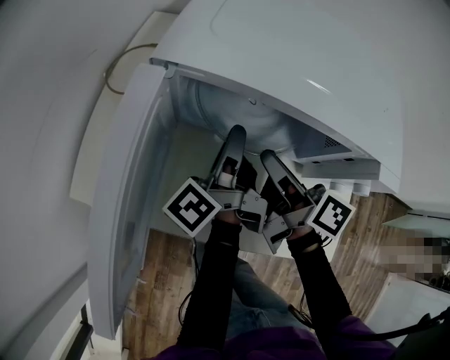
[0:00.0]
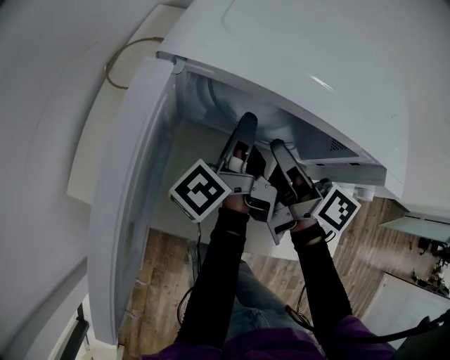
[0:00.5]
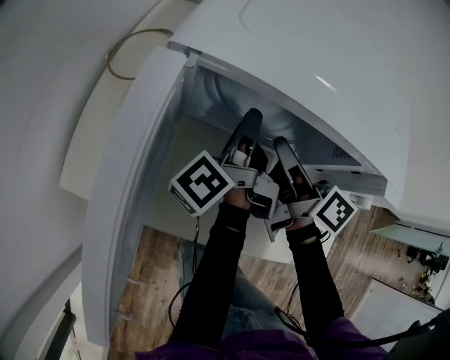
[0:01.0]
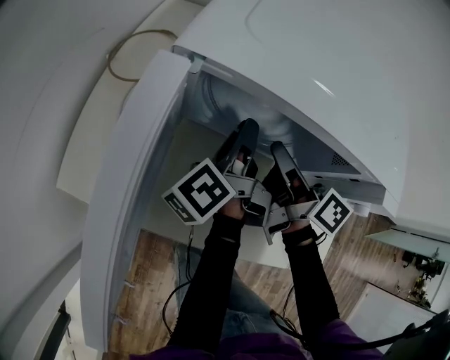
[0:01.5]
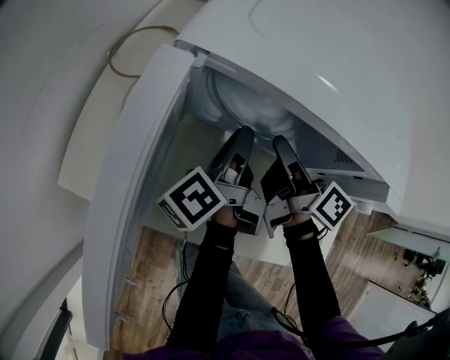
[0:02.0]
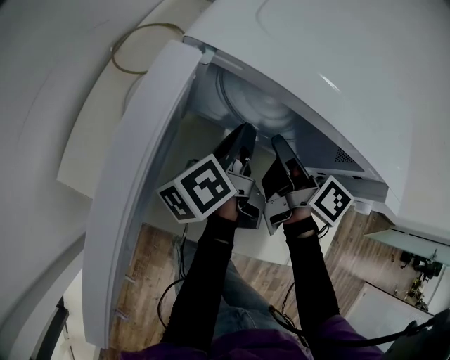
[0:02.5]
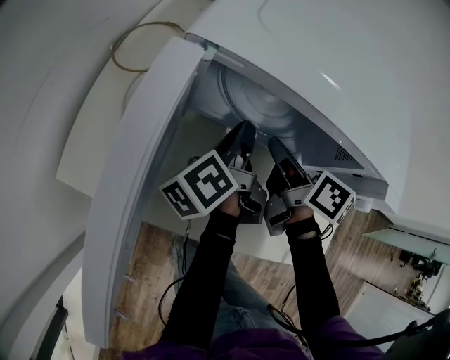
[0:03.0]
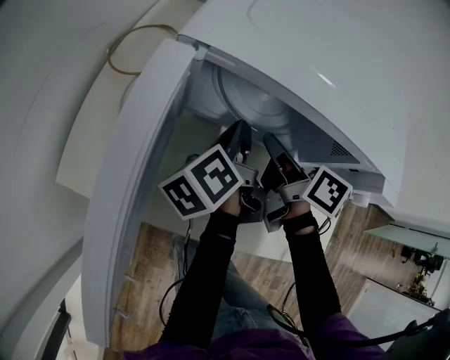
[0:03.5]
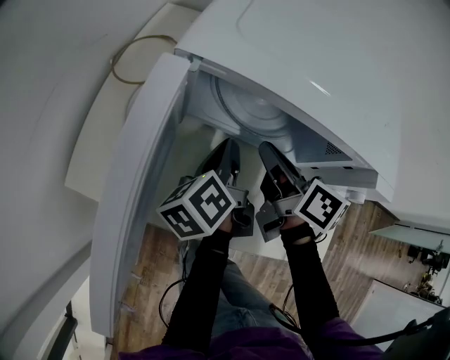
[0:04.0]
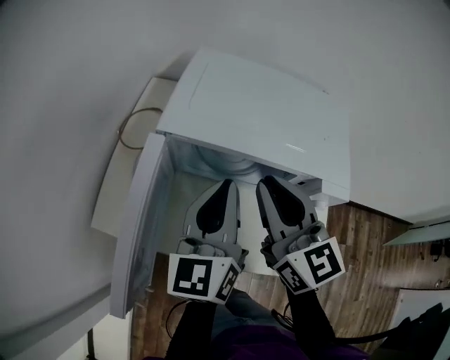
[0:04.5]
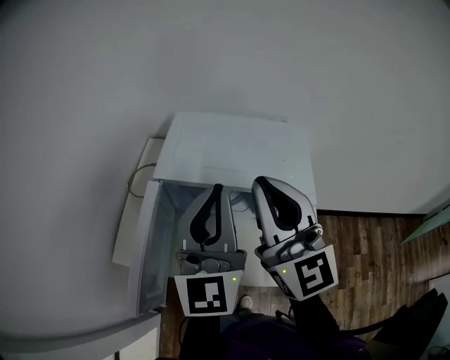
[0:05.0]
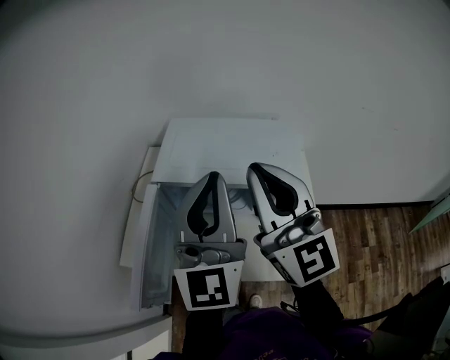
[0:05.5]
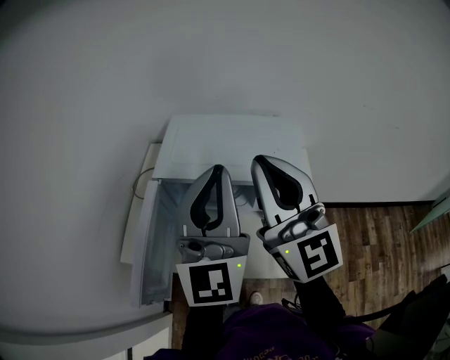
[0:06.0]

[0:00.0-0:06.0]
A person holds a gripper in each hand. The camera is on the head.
0:00.0 to 0:02.0: The right gripper moves roughly 5 cm.
0:02.0 to 0:04.0: The left gripper swivels about 30 degrees, and closes up.
0:04.0 to 0:06.0: The two grippers go about 40 cm upward. The left gripper twists some 70 degrees clockwise, seen from behind; the right gripper rolls counterclockwise, seen from behind, by approximately 60 degrees.

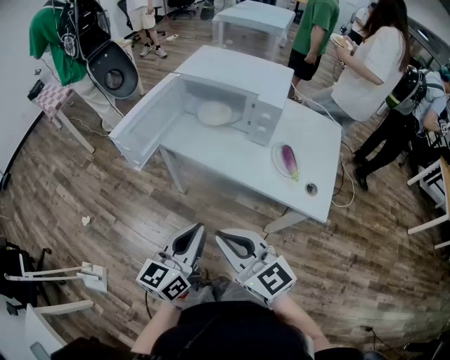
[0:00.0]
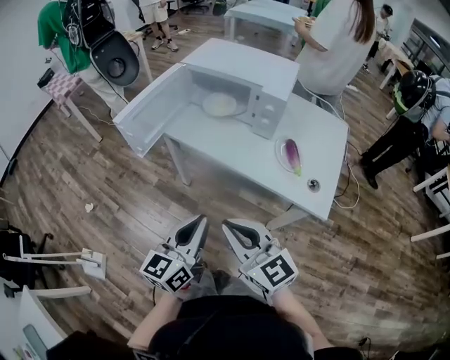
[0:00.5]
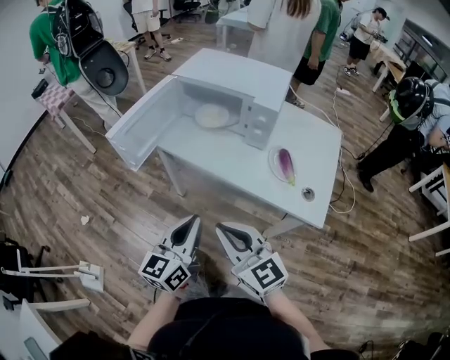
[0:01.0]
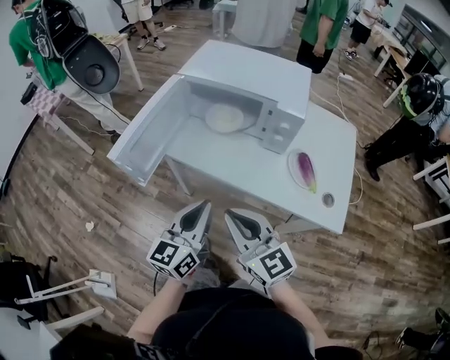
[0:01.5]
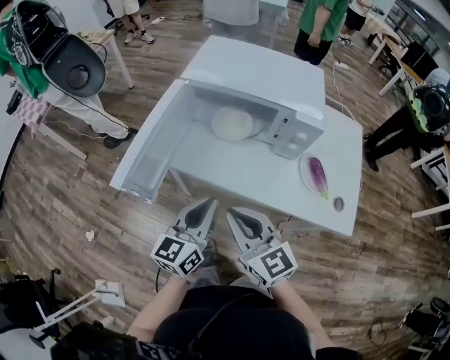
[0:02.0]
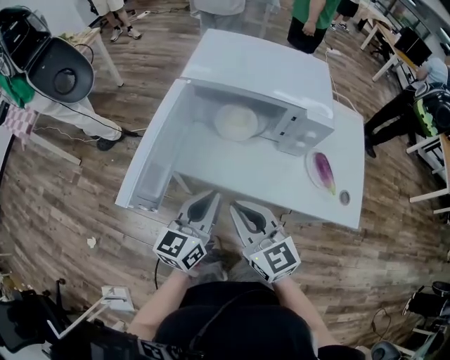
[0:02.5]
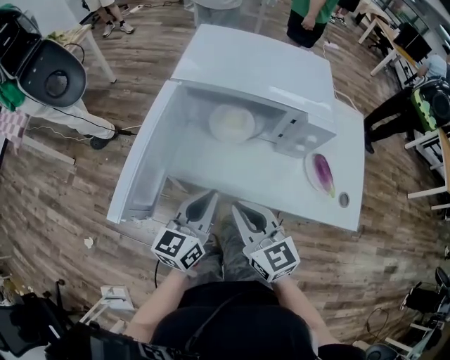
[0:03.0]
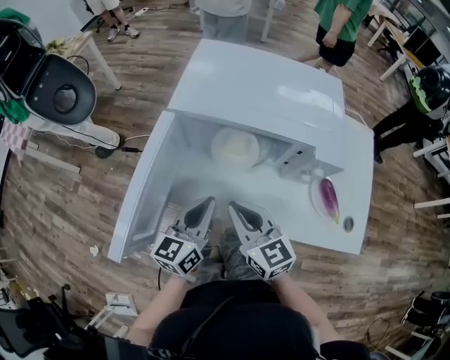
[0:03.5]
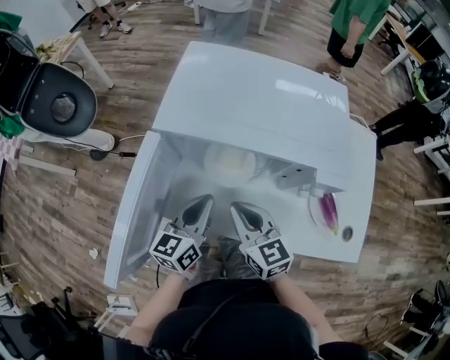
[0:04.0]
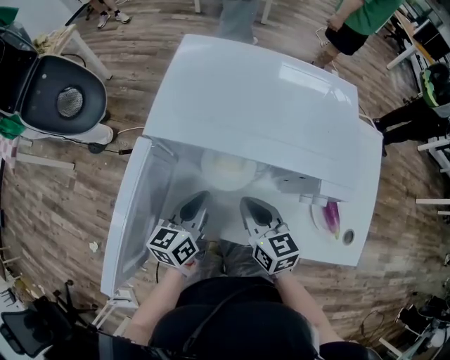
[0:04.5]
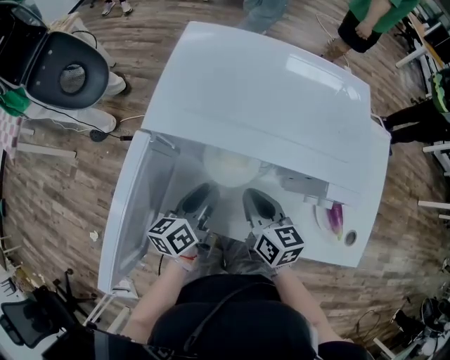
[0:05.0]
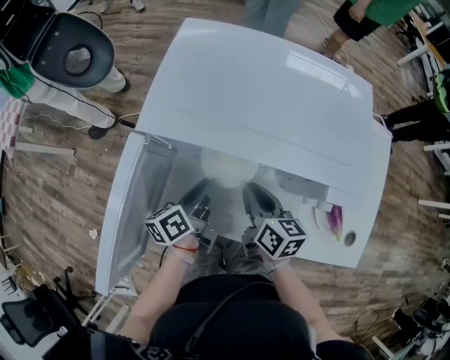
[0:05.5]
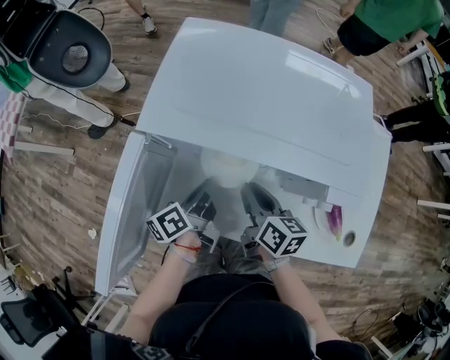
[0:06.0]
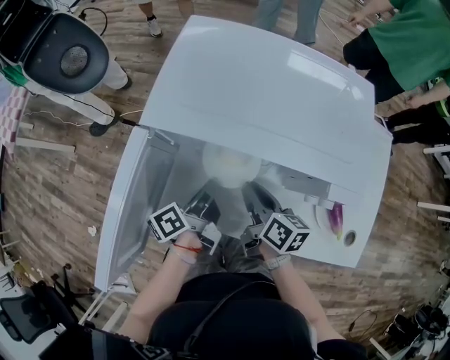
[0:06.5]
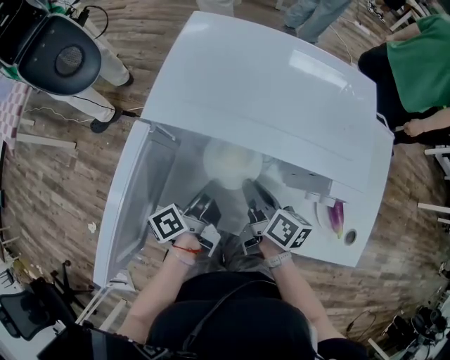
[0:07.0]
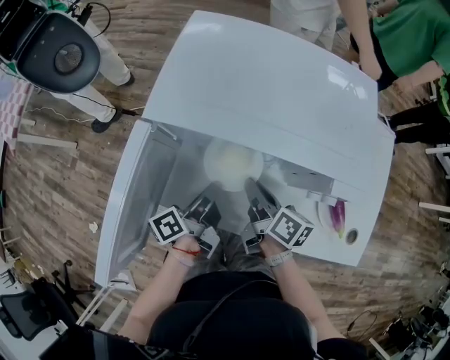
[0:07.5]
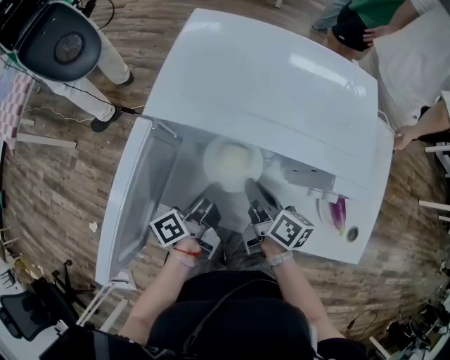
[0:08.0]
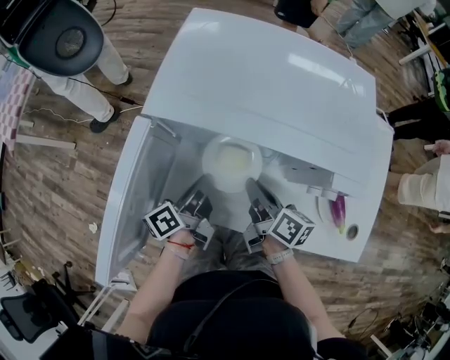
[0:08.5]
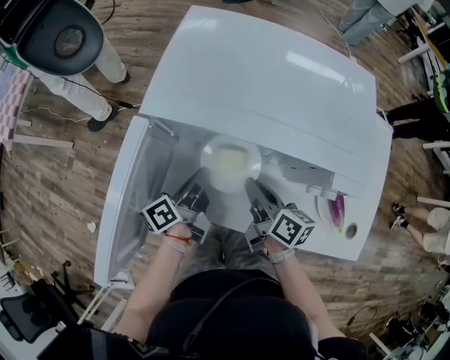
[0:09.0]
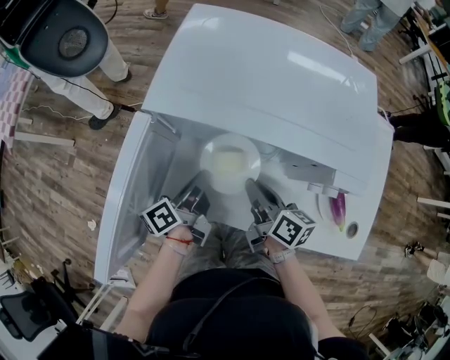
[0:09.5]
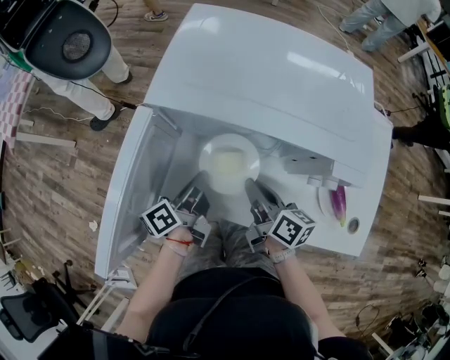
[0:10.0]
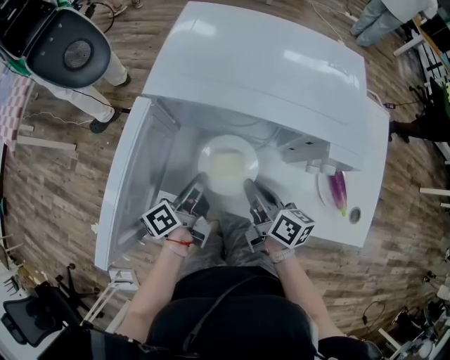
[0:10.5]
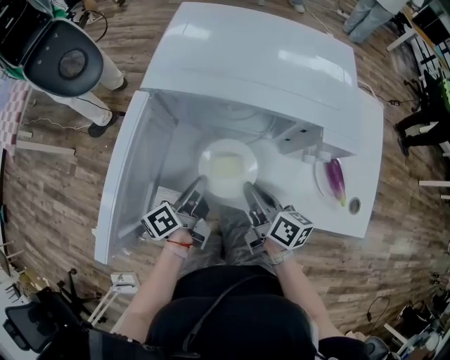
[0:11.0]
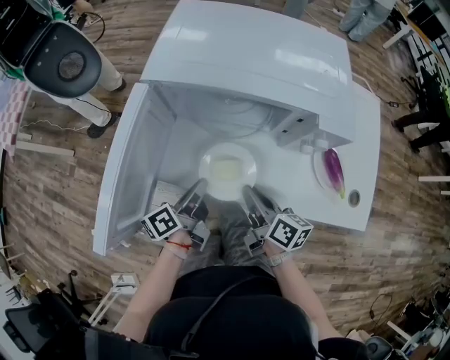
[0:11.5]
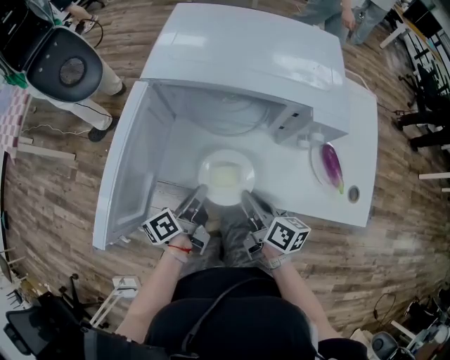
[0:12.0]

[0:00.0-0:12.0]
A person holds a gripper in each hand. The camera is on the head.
0:00.0 to 0:02.0: The two grippers go about 20 cm forward.
0:02.0 to 0:04.0: The right gripper heads forward and downward, covering about 20 cm. The left gripper goes about 20 cm forward.
0:04.0 to 0:06.0: The left gripper travels downward and forward by approximately 10 cm, rolls counterclockwise, seen from behind, by roughly 40 degrees, and opens, then closes again. Meanwhile the right gripper travels downward, forward and to the right by some 10 cm, and turns by roughly 40 degrees.
0:06.0 to 0:10.0: The grippers make only small movements.
0:10.0 to 0:12.0: Both grippers move backward, roughly 10 cm.

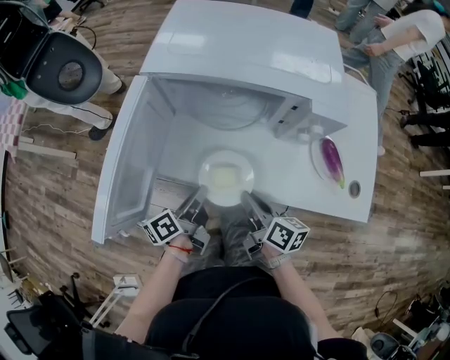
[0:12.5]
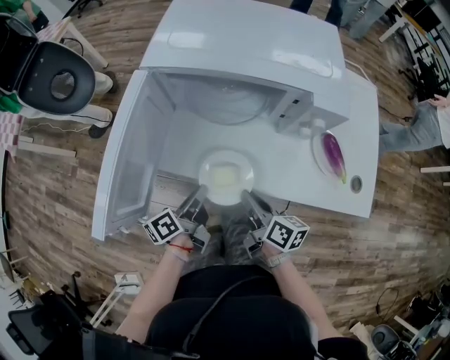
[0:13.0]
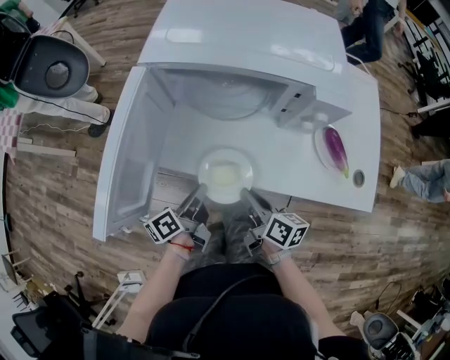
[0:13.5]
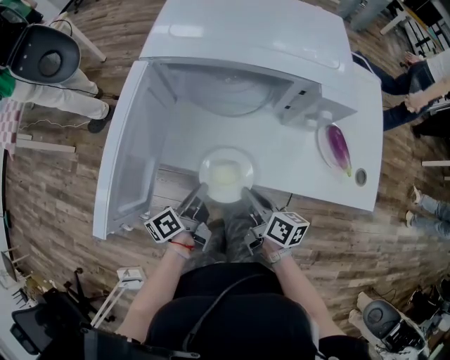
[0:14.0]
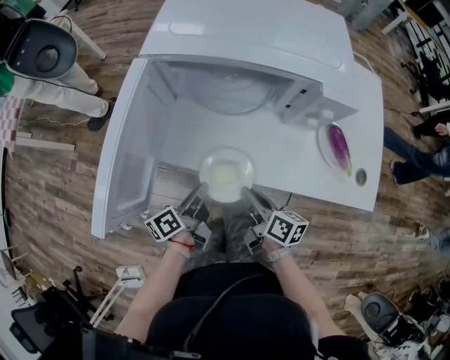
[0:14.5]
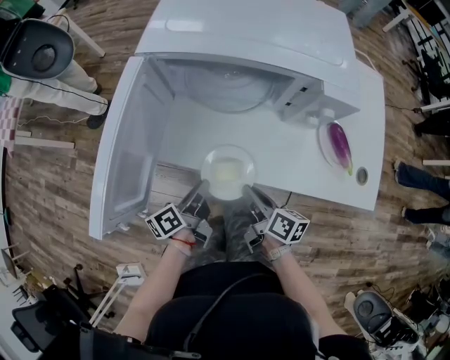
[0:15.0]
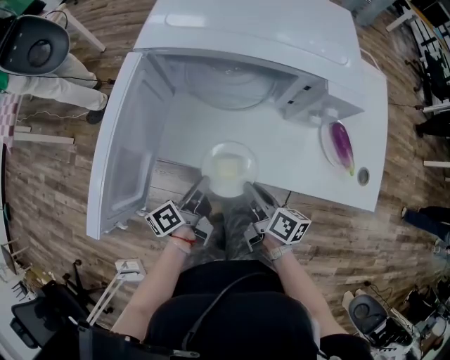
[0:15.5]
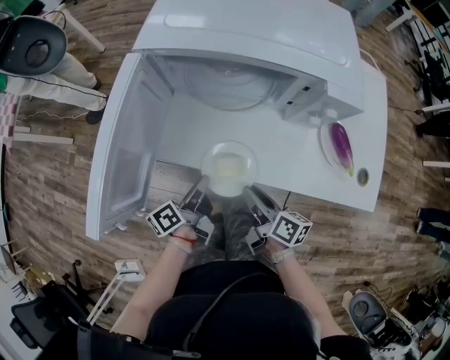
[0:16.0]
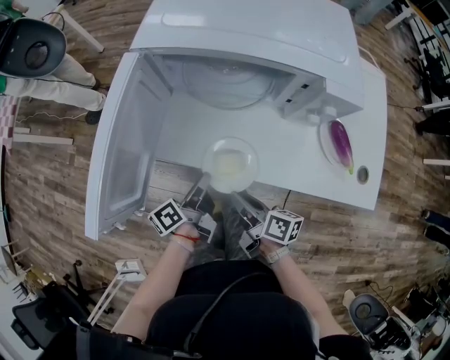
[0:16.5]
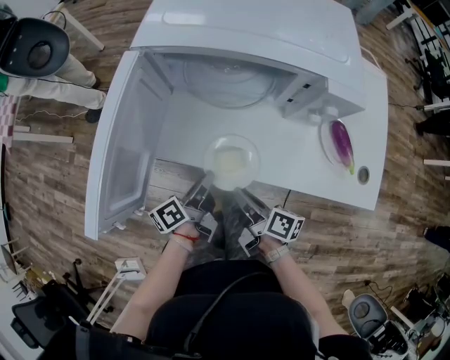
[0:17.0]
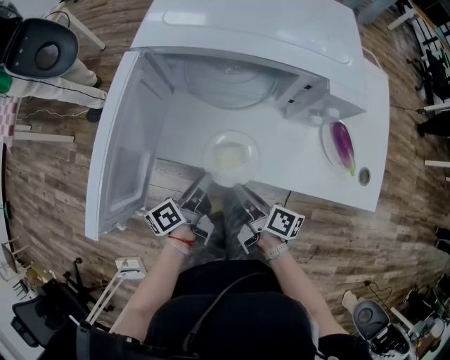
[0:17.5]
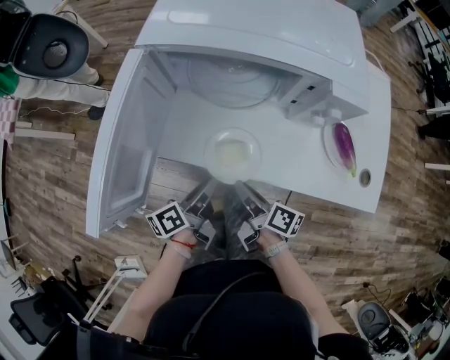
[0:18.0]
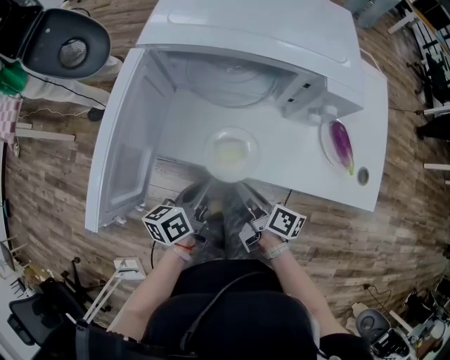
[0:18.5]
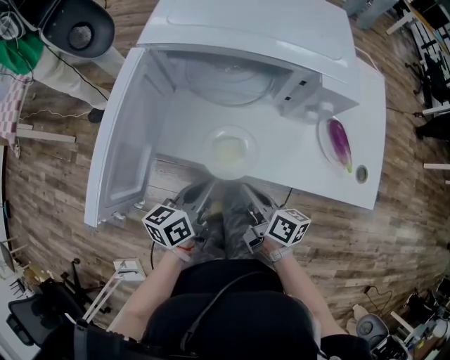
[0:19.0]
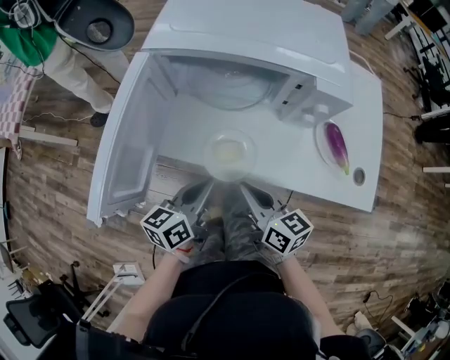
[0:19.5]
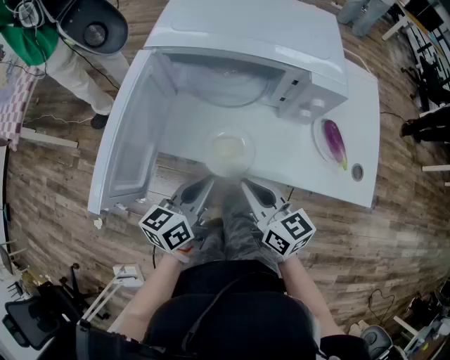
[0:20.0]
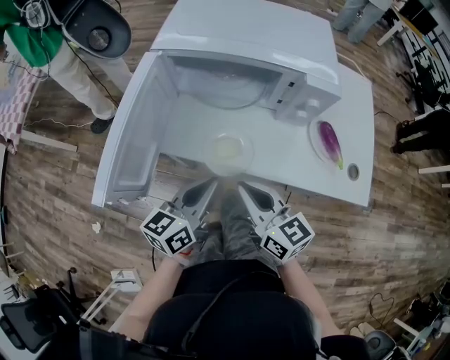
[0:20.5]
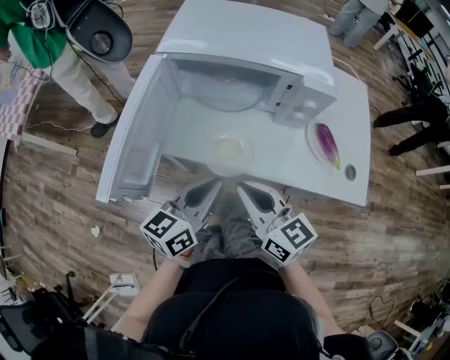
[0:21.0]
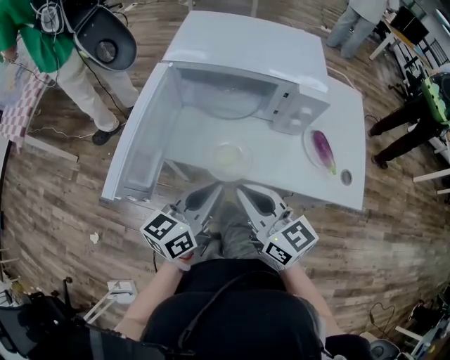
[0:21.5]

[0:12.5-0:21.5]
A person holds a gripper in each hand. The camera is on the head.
0:12.5 to 0:14.5: The grippers stay close to where they were, moving slightly.
0:14.5 to 0:17.0: The grippers move only a little.
0:17.0 to 0:19.5: Both grippers travel together upward, about 10 cm. The left gripper changes its angle by roughly 40 degrees. The right gripper rolls counterclockwise, seen from behind, by about 40 degrees.
0:19.5 to 0:21.5: The two grippers go roughly 10 cm upward. The right gripper swivels some 20 degrees.
